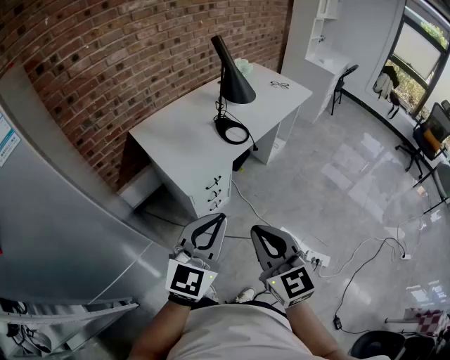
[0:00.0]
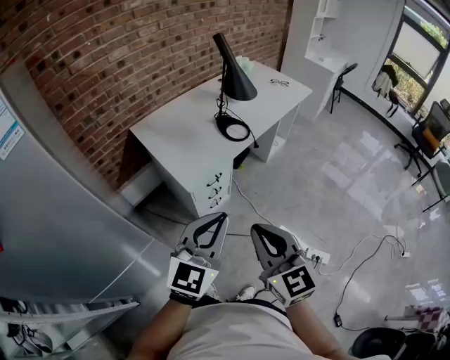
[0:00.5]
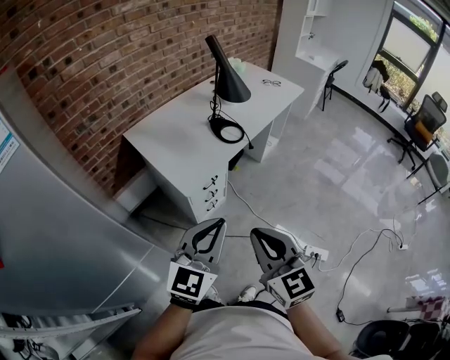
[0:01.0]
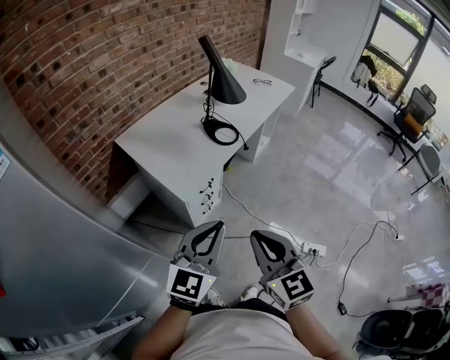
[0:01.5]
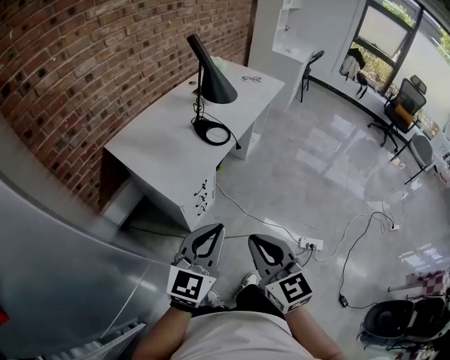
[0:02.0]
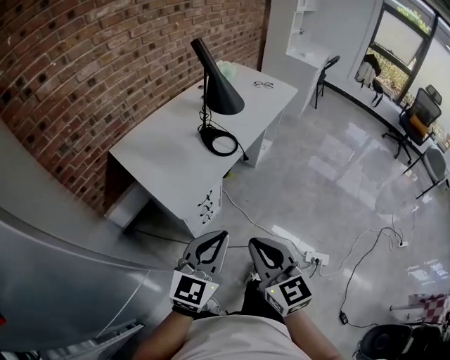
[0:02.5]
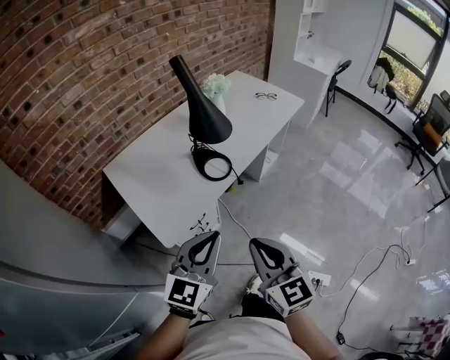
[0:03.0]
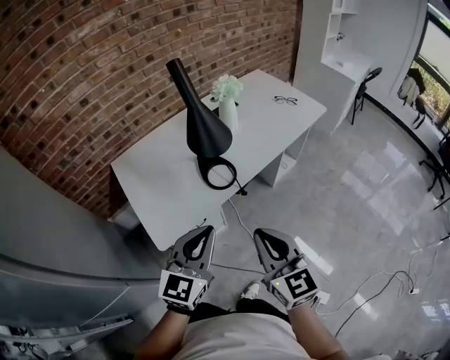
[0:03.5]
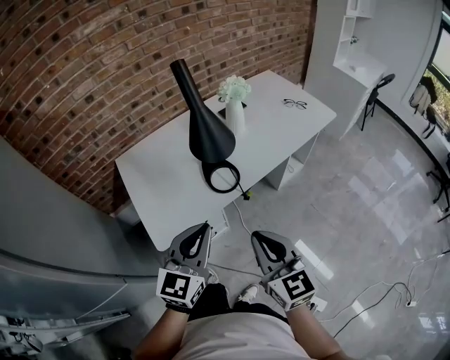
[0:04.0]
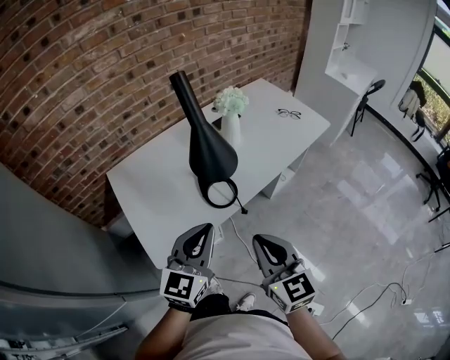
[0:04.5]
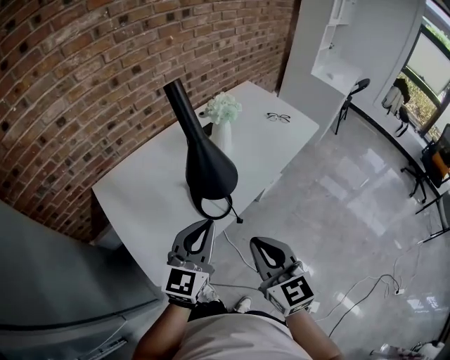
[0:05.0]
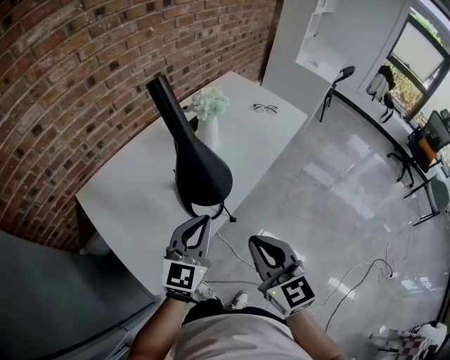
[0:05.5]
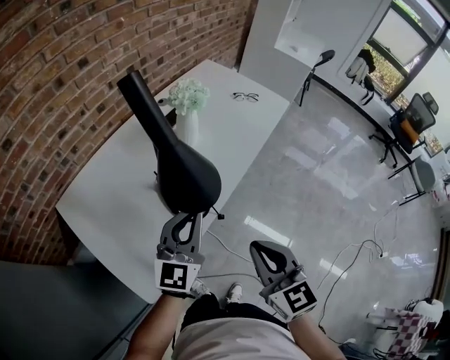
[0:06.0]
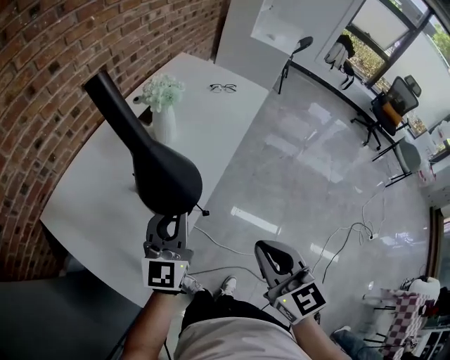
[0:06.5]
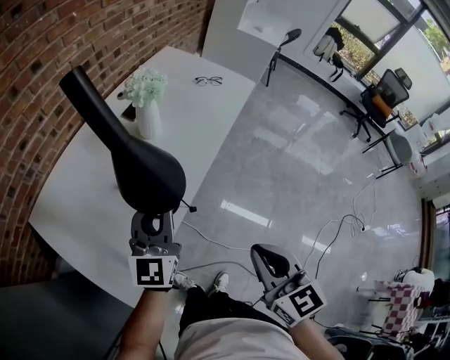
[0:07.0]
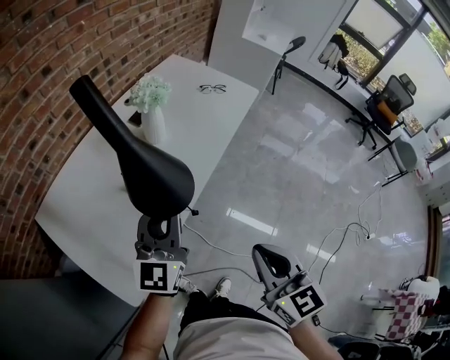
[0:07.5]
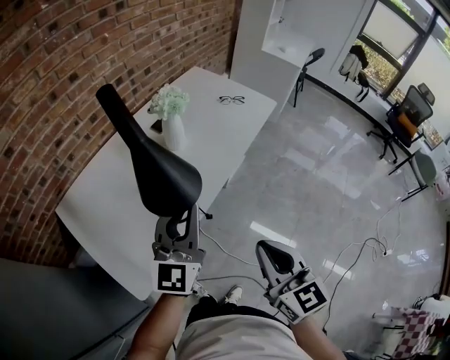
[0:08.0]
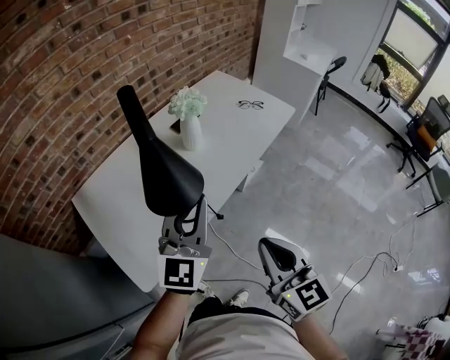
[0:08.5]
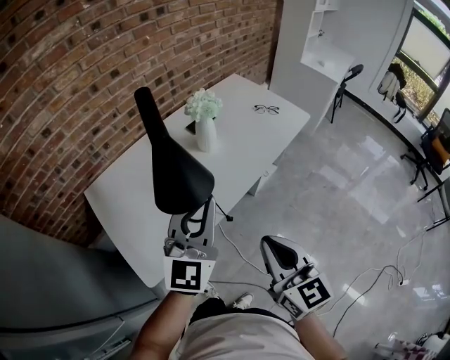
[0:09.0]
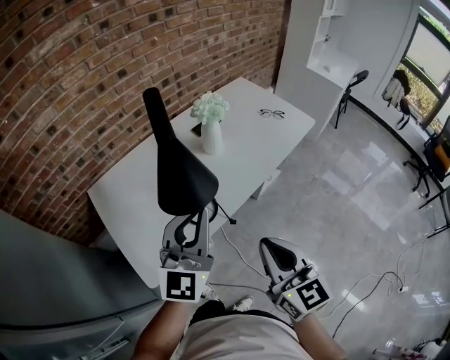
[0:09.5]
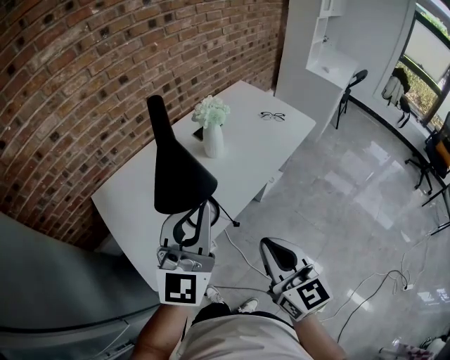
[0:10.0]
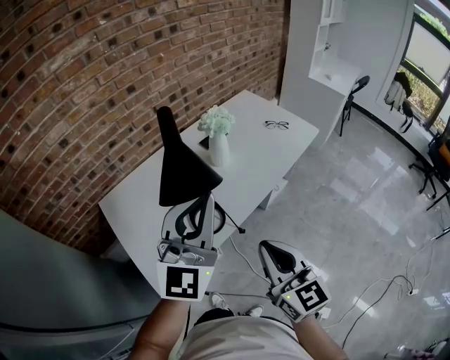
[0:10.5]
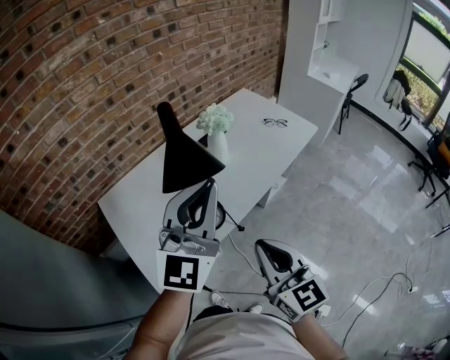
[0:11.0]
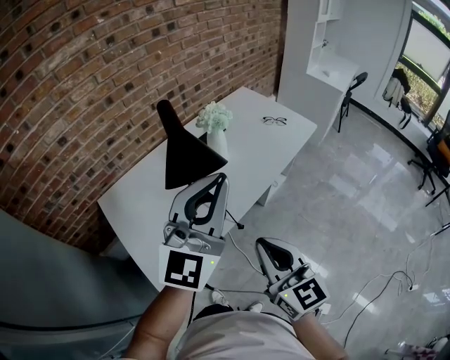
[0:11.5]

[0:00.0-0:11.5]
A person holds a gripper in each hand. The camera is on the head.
0:00.0 to 0:02.0: The right gripper moves about 5 cm; the left gripper moves about 5 cm.
0:02.0 to 0:04.0: The two grippers go approximately 35 cm forward and to the right. The right gripper turns by approximately 20 degrees, while the left gripper rotates some 30 degrees.
0:04.0 to 0:06.0: The left gripper goes about 20 cm forward; the right gripper goes roughly 10 cm forward, and swivels approximately 20 degrees.
0:06.0 to 0:07.5: The left gripper moves about 5 cm; the right gripper goes roughly 5 cm to the right.
0:07.5 to 0:09.5: The right gripper swivels some 20 degrees. The left gripper heads upward and backward, covering some 10 cm.
0:09.5 to 0:11.5: The left gripper goes approximately 10 cm upward.

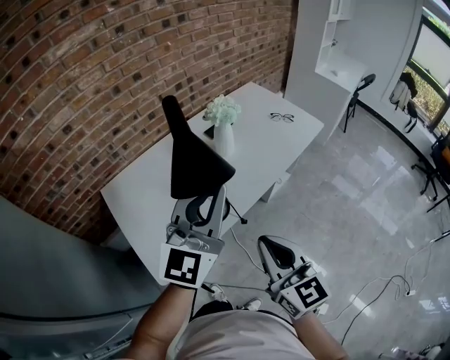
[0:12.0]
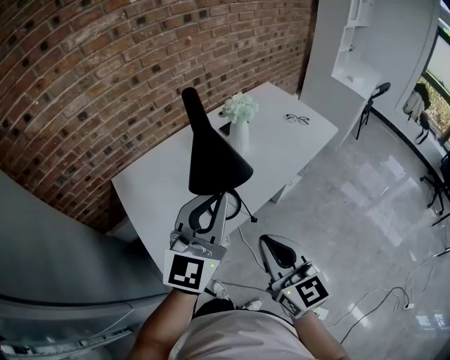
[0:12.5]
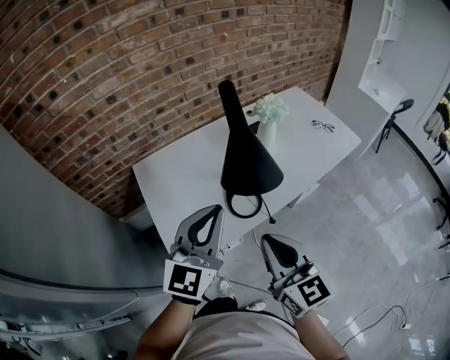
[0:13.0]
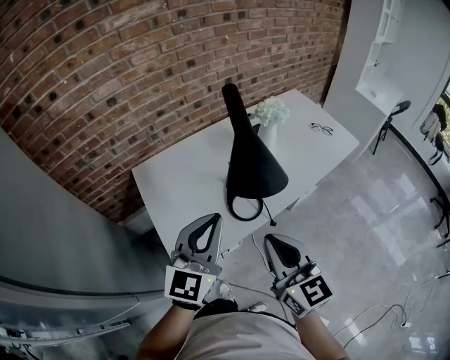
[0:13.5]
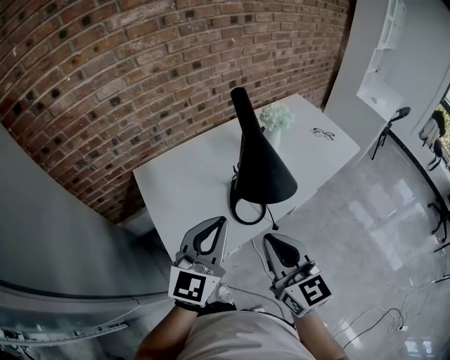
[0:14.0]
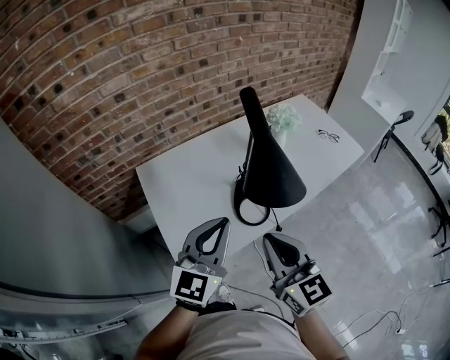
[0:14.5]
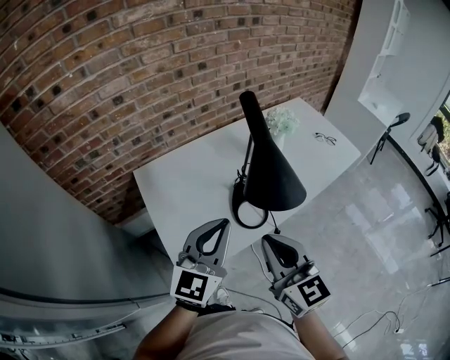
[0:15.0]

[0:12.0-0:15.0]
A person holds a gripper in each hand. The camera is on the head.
0:12.0 to 0:13.5: The left gripper travels to the left and downward by about 15 cm. The right gripper is displaced to the left by approximately 10 cm.
0:13.5 to 0:15.0: The right gripper moves about 5 cm.

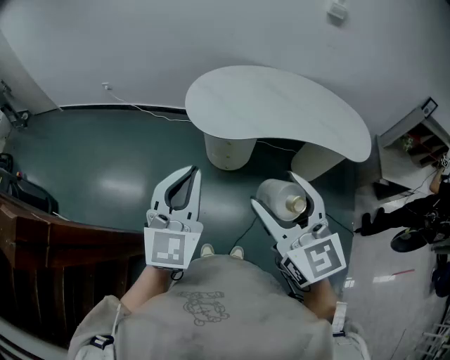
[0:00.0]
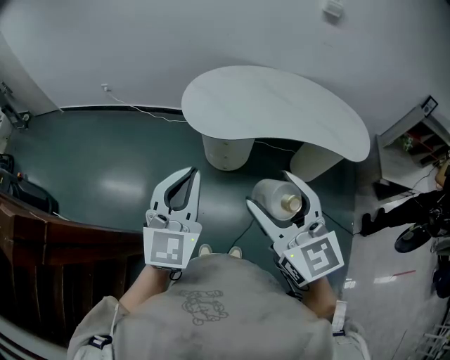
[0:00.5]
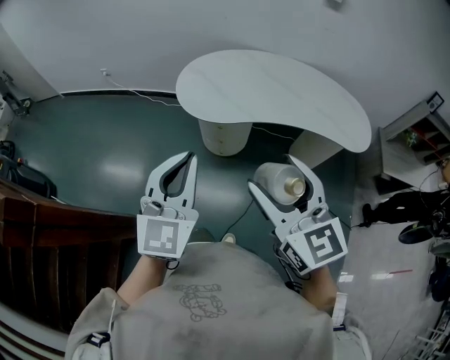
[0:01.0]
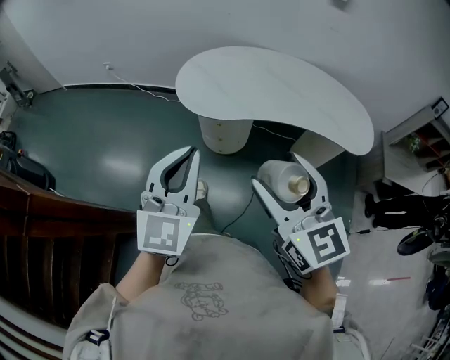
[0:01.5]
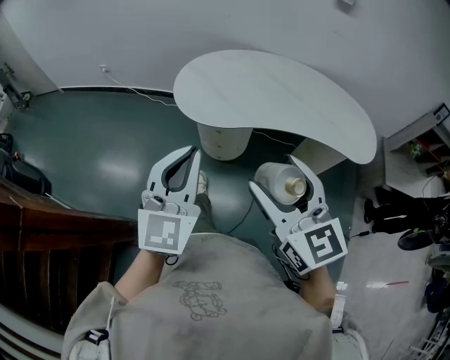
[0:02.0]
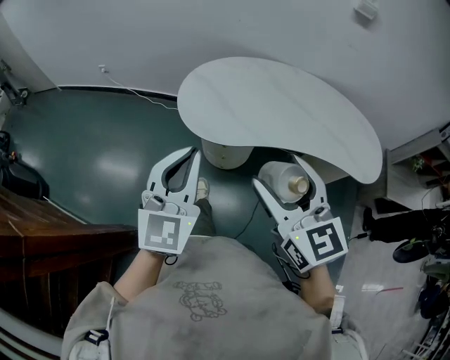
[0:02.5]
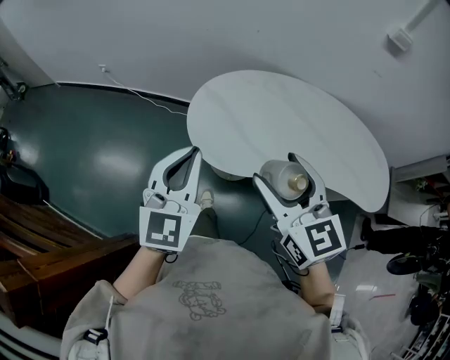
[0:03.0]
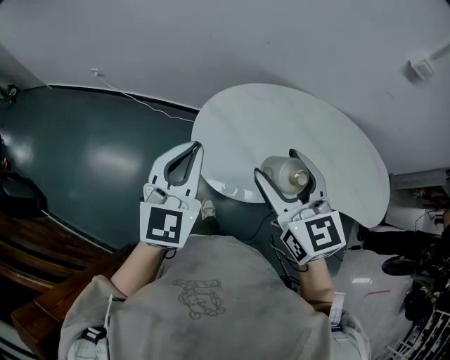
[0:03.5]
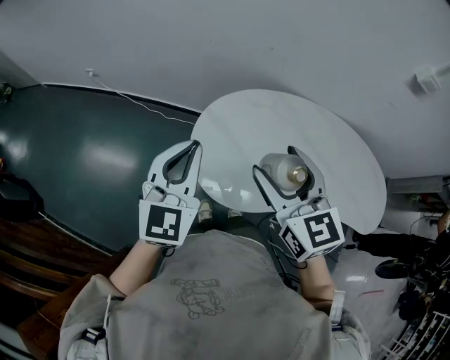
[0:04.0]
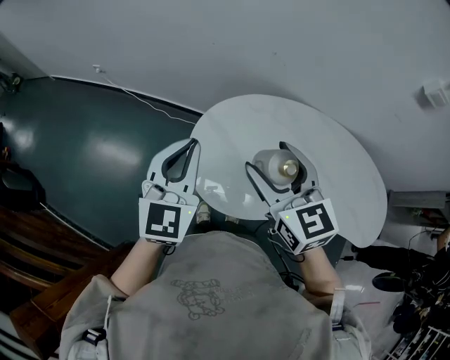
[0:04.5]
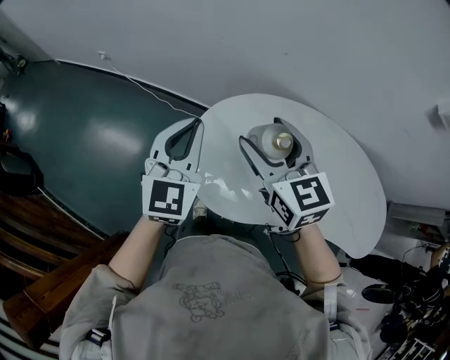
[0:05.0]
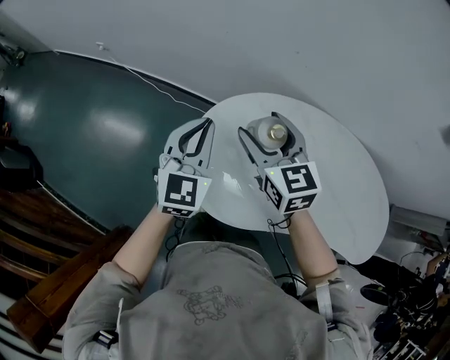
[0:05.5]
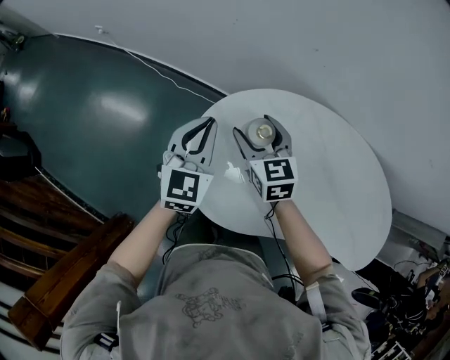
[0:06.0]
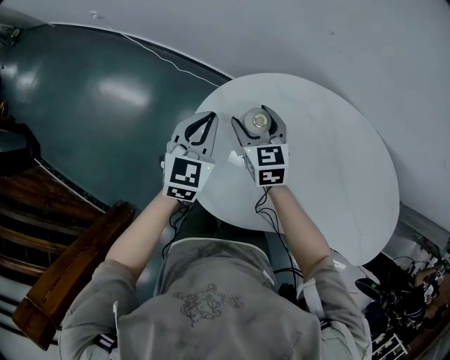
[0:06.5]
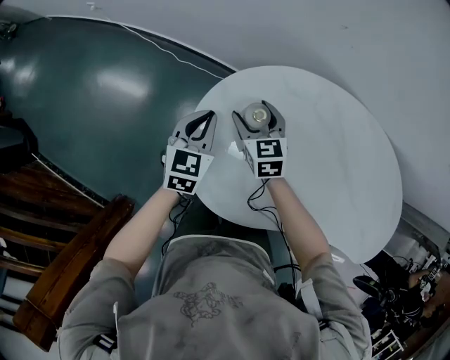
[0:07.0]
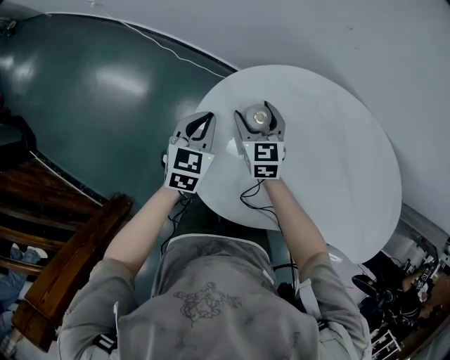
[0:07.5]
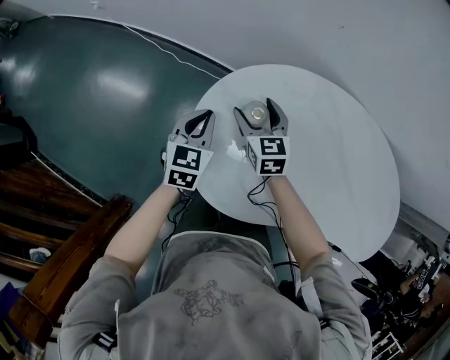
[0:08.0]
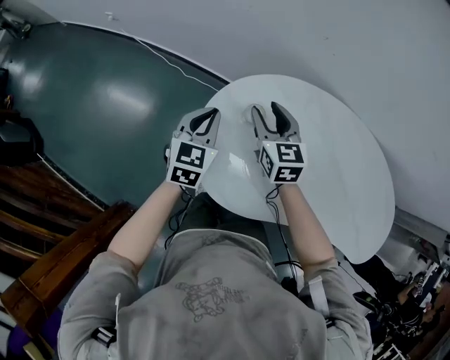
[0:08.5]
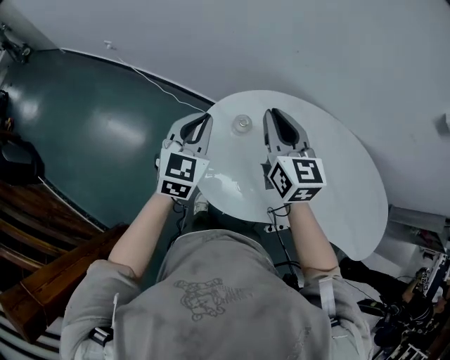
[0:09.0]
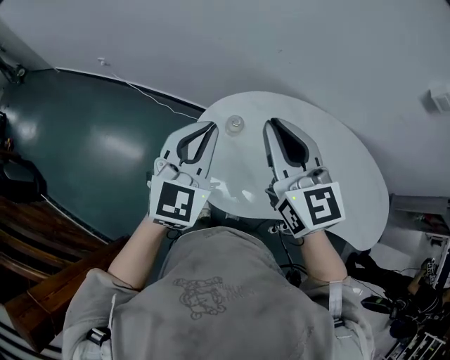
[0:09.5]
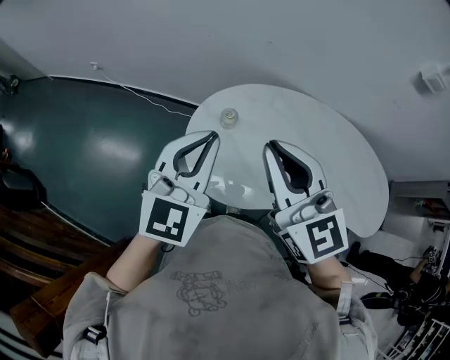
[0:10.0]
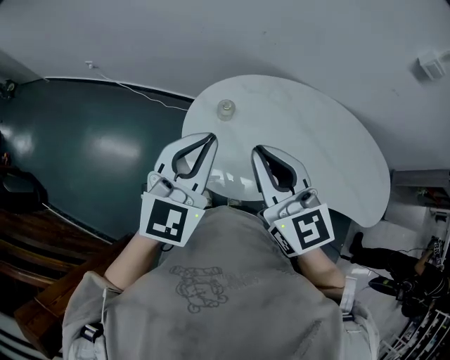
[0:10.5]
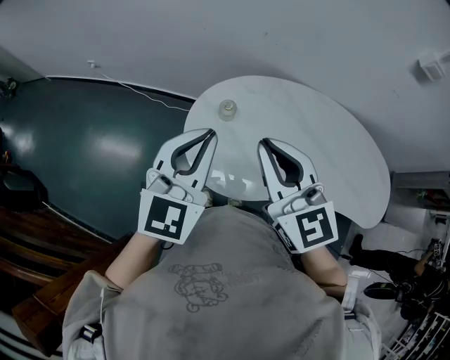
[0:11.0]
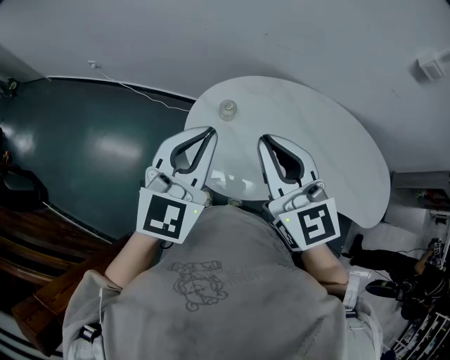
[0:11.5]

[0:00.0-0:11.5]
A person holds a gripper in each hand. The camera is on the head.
0:00.0 to 0:02.0: The left gripper is displaced to the right by some 10 cm; the right gripper travels to the right and downward by some 10 cm.
0:02.0 to 0:04.0: The two grippers travel together, forward, about 40 cm.
0:04.0 to 0:06.0: Both grippers travel together forward and downward, some 25 cm.
0:06.0 to 0:07.5: Both grippers move downward, approximately 15 cm.
0:07.5 to 0:09.5: Both grippers move upward, approximately 35 cm. The right gripper rotates about 30 degrees, and closes up, while the left gripper swivels about 30 degrees.
0:09.5 to 0:11.5: Both grippers travel together backward, some 10 cm.

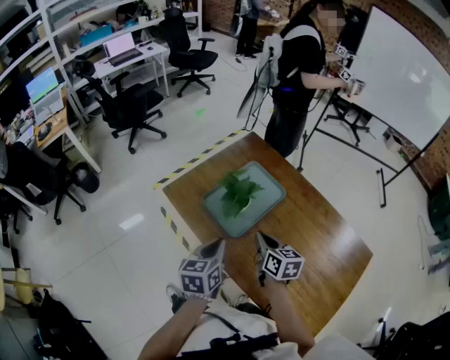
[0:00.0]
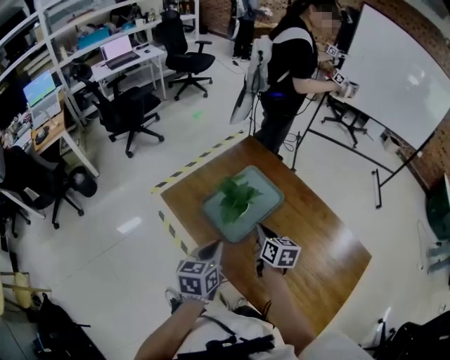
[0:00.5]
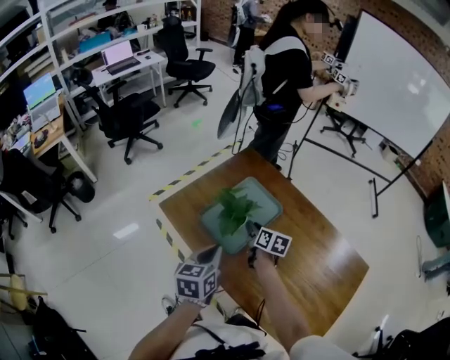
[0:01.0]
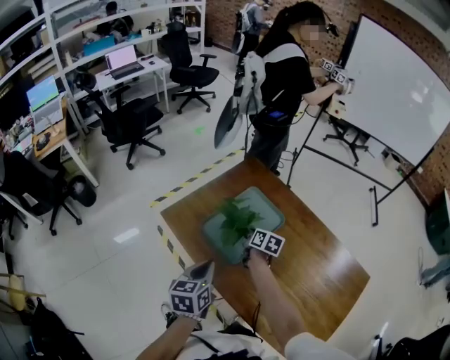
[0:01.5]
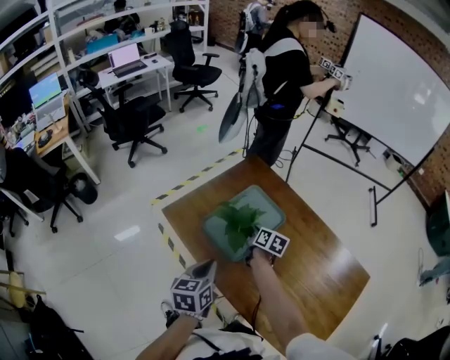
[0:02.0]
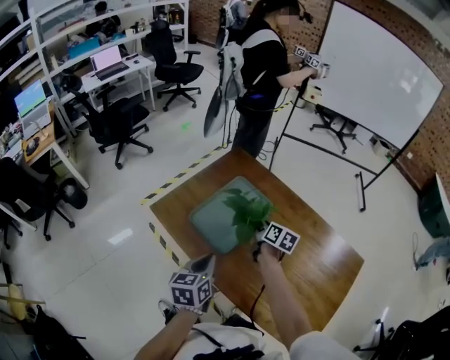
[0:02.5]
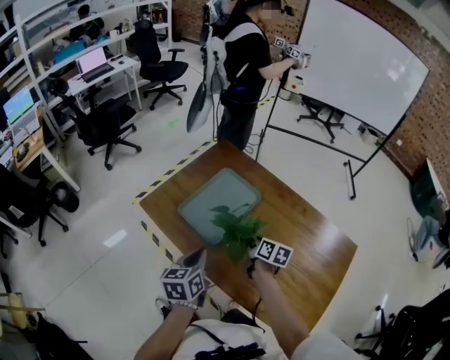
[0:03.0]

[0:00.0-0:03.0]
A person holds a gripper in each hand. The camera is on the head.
0:00.0 to 0:01.5: The right gripper heads forward and downward, covering some 20 cm, rotates approximately 20 degrees, and opens up.
0:01.5 to 0:03.0: The right gripper travels backward and to the right by roughly 15 cm.
